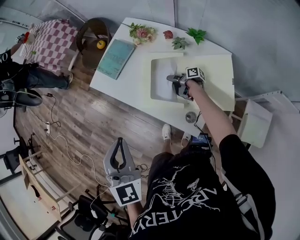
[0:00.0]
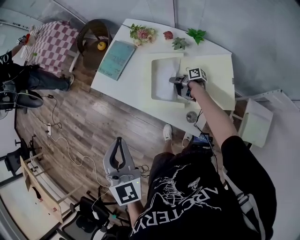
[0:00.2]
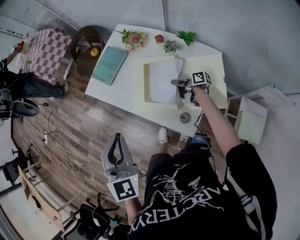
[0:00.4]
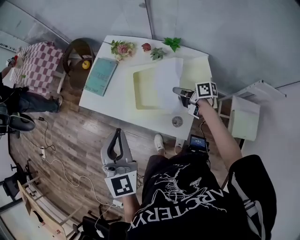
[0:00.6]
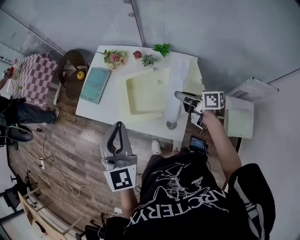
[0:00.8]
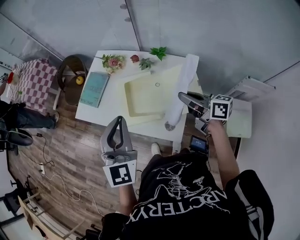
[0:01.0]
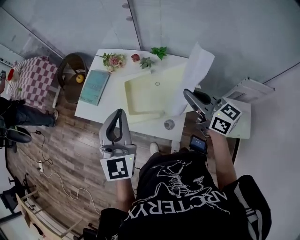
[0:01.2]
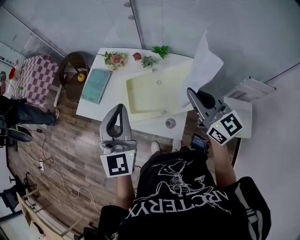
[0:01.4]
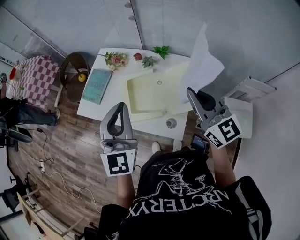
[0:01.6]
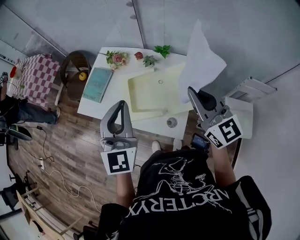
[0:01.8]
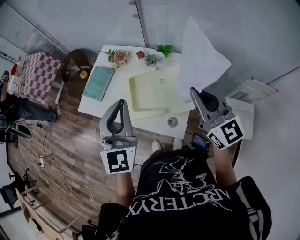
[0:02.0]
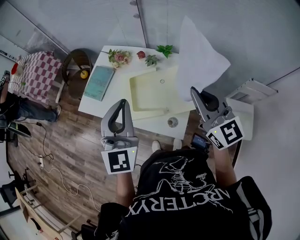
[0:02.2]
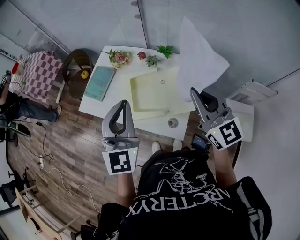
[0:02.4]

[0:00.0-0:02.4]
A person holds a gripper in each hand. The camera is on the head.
0:00.0 to 0:01.2: The left gripper moves some 15 cm, and swivels roughly 30 degrees; the right gripper heads upward, covering about 40 cm, and twists about 70 degrees counterclockwise, seen from behind.
0:01.2 to 0:02.4: The right gripper shifts roughly 5 cm upward, and changes its angle by approximately 30 degrees.

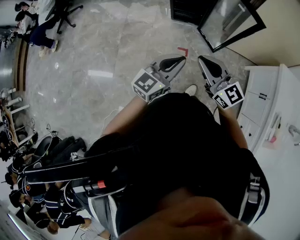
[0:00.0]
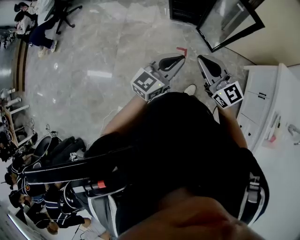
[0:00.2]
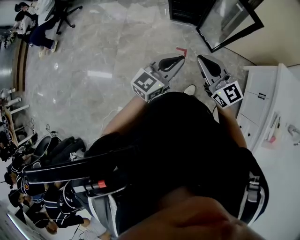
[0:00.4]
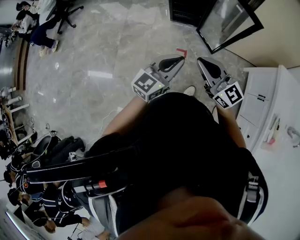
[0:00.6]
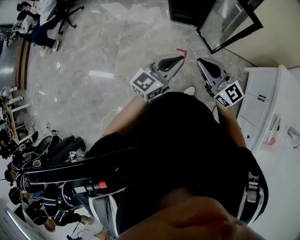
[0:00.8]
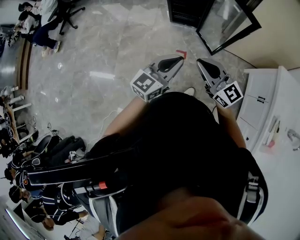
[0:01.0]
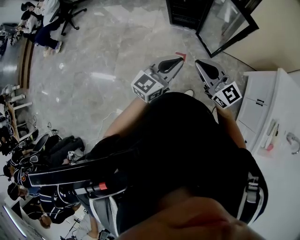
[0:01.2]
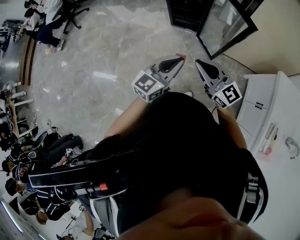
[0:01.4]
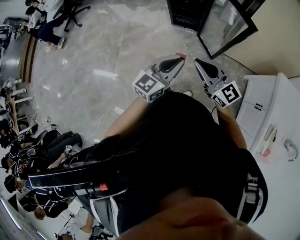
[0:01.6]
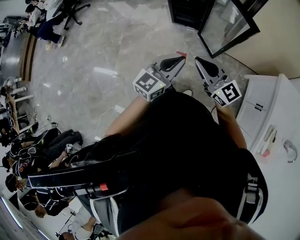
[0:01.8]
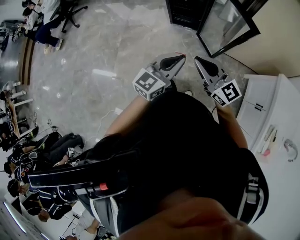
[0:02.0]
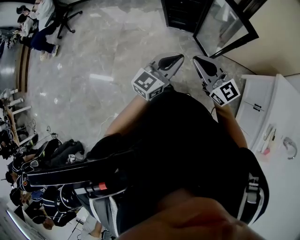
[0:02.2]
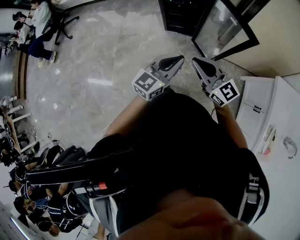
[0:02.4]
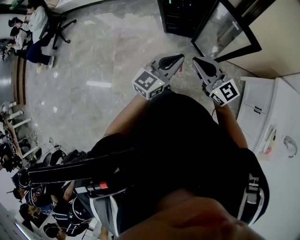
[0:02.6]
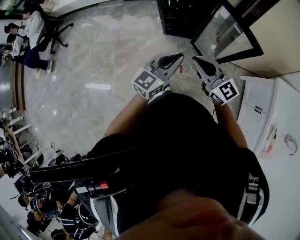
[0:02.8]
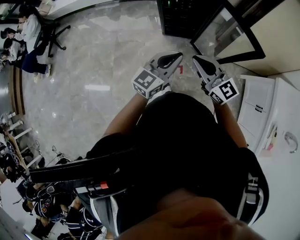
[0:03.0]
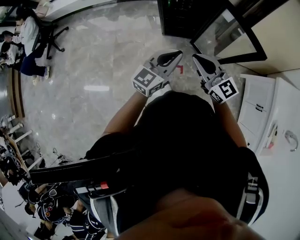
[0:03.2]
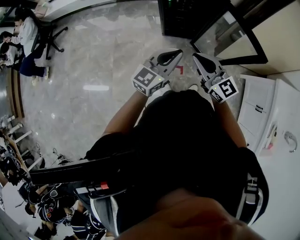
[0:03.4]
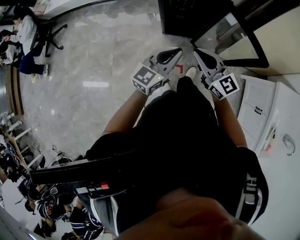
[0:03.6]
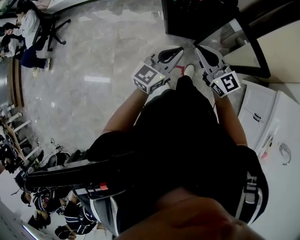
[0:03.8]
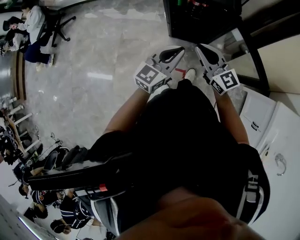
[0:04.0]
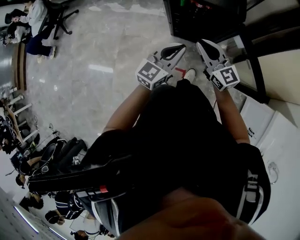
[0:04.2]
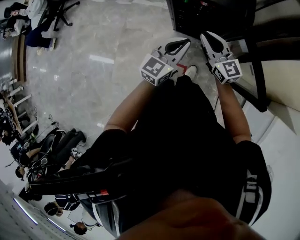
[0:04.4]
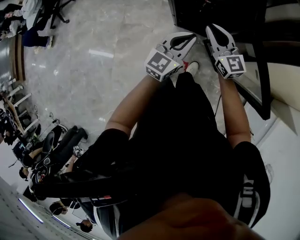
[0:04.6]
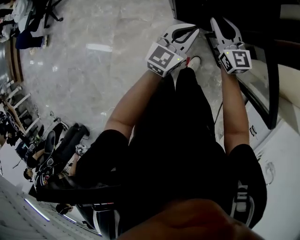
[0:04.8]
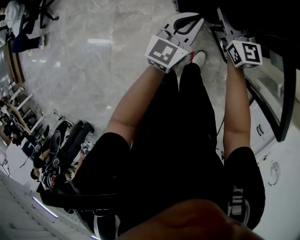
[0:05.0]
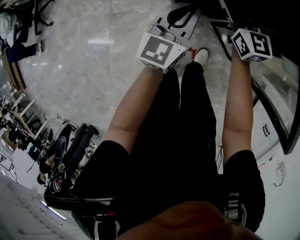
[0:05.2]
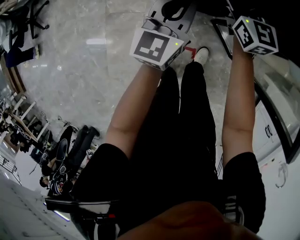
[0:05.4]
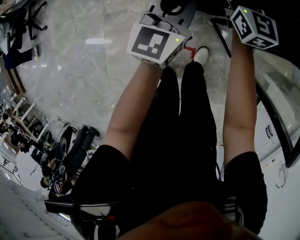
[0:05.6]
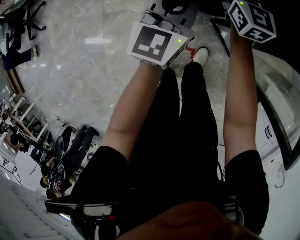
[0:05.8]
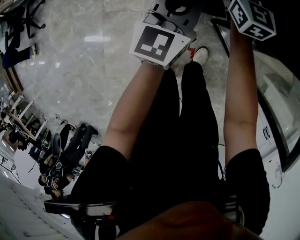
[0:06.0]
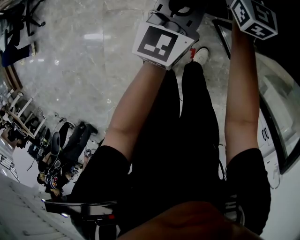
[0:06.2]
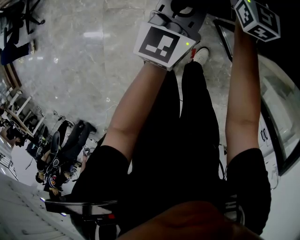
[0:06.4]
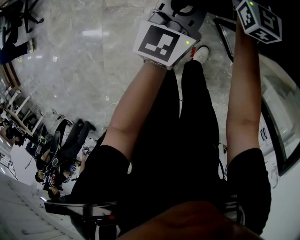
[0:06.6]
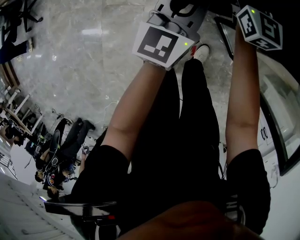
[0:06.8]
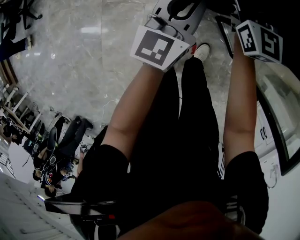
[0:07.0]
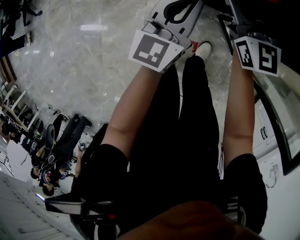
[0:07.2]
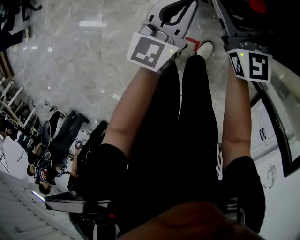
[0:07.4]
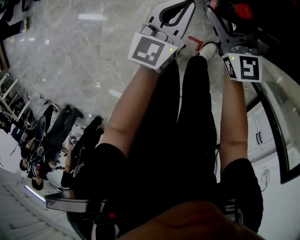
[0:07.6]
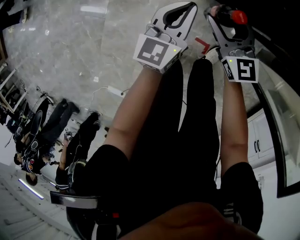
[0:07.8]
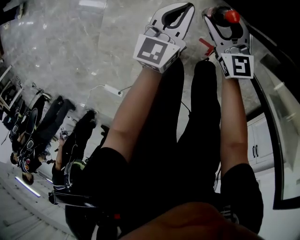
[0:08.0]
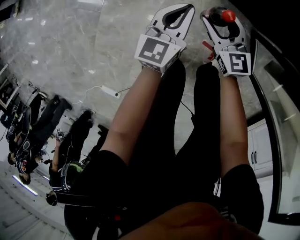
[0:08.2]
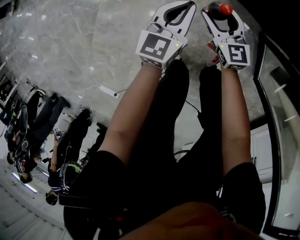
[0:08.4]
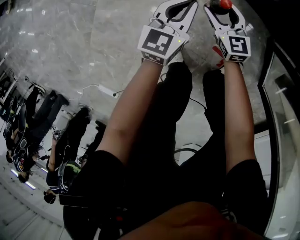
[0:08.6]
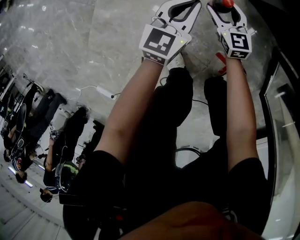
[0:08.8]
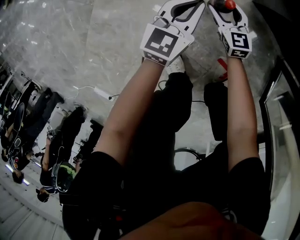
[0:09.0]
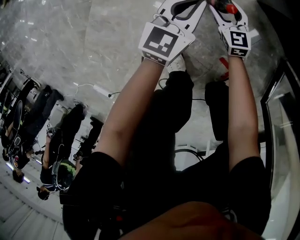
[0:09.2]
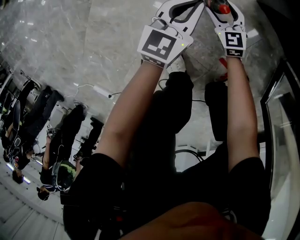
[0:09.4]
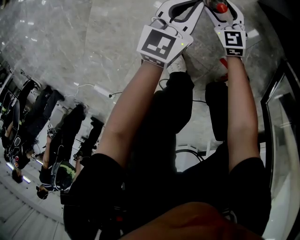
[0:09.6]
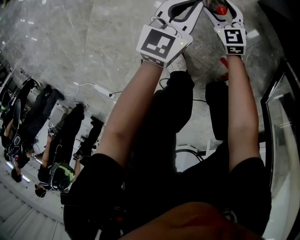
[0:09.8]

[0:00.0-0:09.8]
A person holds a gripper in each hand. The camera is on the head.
0:00.0 to 0:01.4: The two grippers go approximately 10 cm to the right.
0:01.4 to 0:02.8: Both grippers move forward, some 20 cm.
0:02.8 to 0:04.2: Both grippers move forward, about 25 cm.
0:04.2 to 0:05.6: The left gripper heads downward and forward, covering some 25 cm, while the right gripper goes approximately 30 cm forward and downward, changes its angle by approximately 30 degrees, and opens up.
0:07.0 to 0:08.4: Both grippers travel together downward and to the left, approximately 50 cm. The left gripper changes its angle by roughly 30 degrees. The right gripper turns by some 30 degrees.
0:08.4 to 0:09.8: The right gripper travels downward by some 25 cm; the left gripper travels downward by roughly 15 cm.

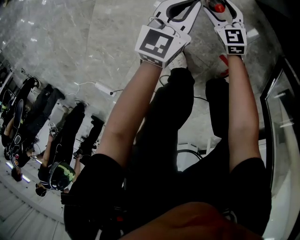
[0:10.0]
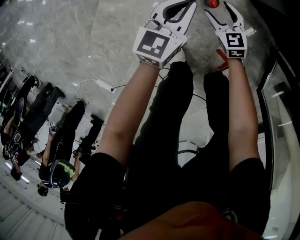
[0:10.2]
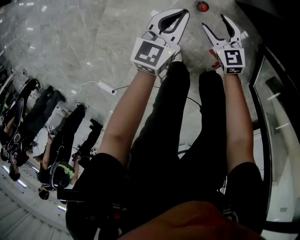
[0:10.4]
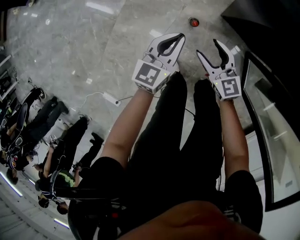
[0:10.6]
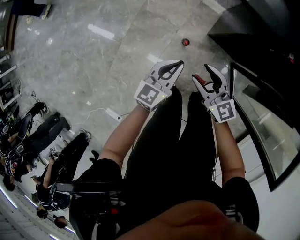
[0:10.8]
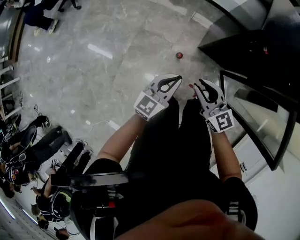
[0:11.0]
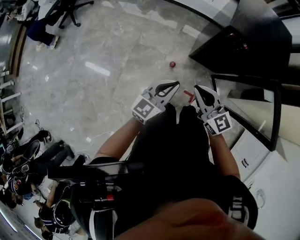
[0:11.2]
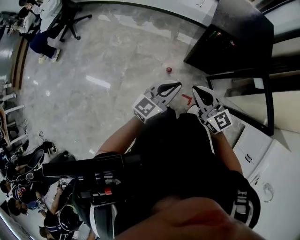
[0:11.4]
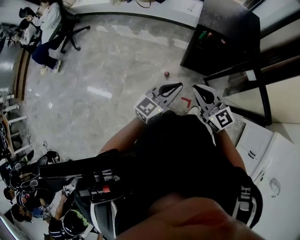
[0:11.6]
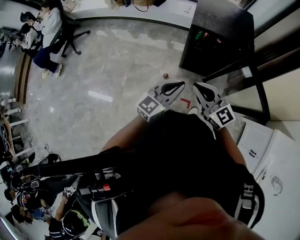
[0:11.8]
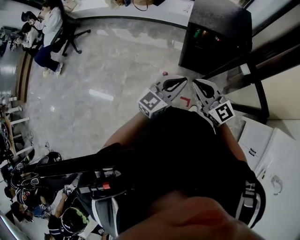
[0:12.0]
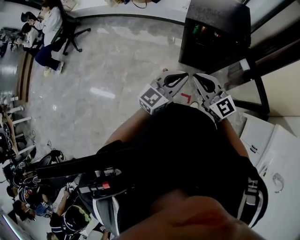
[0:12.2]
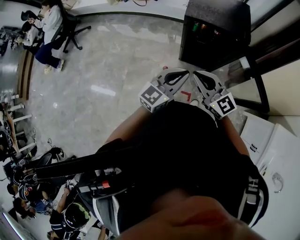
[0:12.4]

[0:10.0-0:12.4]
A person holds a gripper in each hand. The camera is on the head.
0:10.0 to 0:11.2: The grippers both shift upward by roughly 70 cm. The left gripper rotates roughly 30 degrees. Meanwhile the right gripper swivels some 30 degrees, and closes.
0:11.2 to 0:12.4: The grippers both shift upward and to the right by some 20 cm.

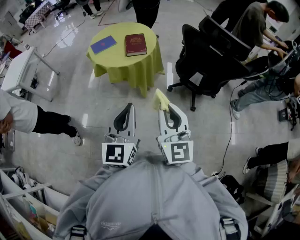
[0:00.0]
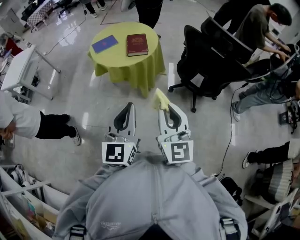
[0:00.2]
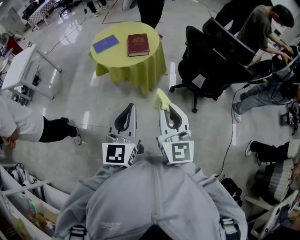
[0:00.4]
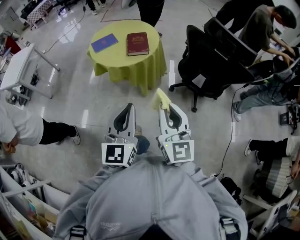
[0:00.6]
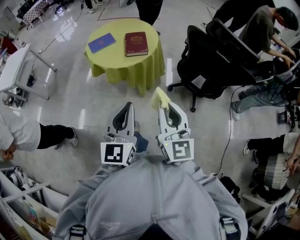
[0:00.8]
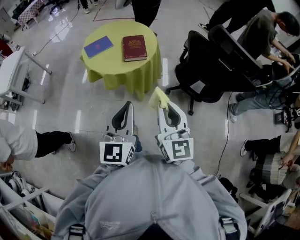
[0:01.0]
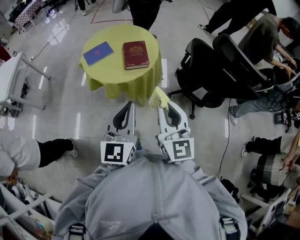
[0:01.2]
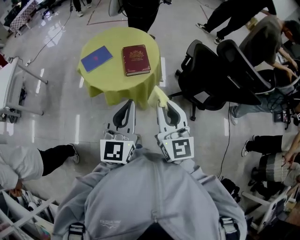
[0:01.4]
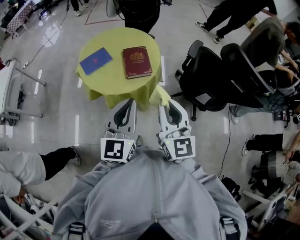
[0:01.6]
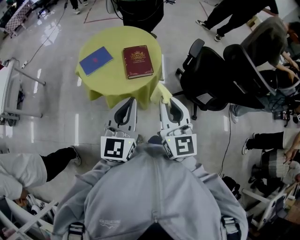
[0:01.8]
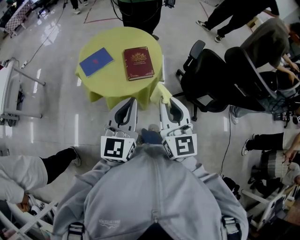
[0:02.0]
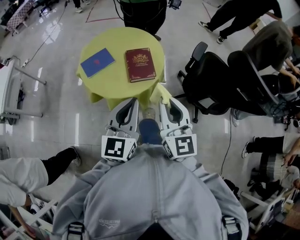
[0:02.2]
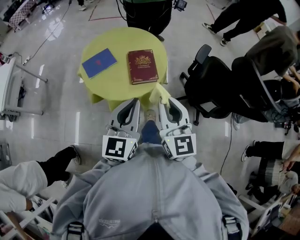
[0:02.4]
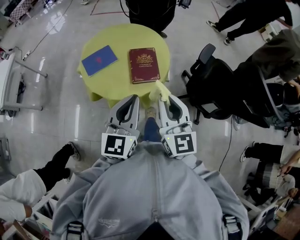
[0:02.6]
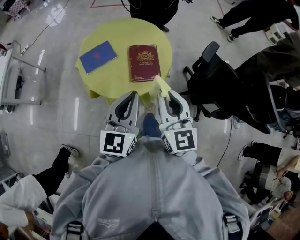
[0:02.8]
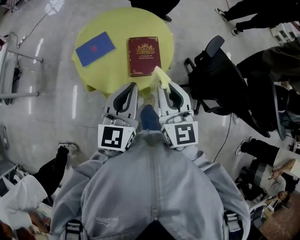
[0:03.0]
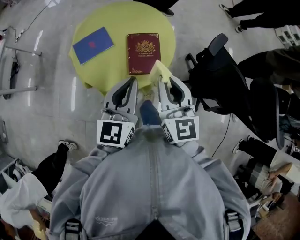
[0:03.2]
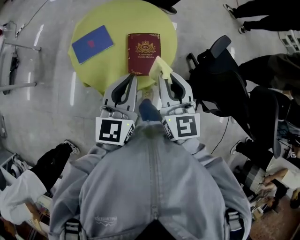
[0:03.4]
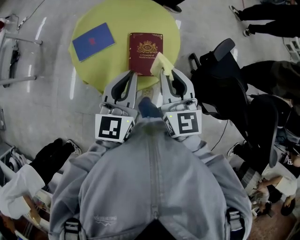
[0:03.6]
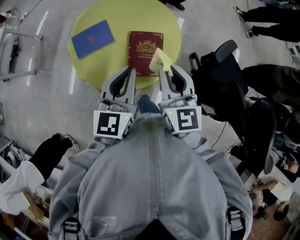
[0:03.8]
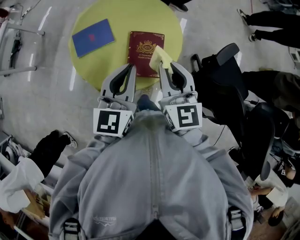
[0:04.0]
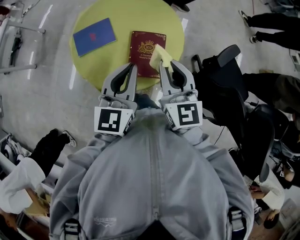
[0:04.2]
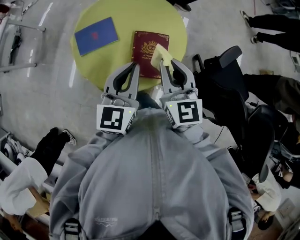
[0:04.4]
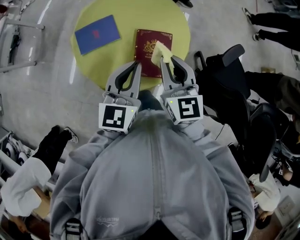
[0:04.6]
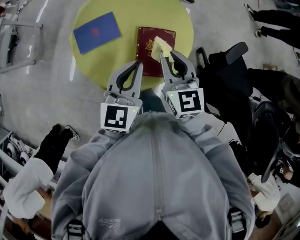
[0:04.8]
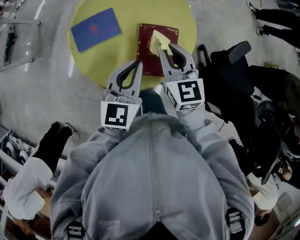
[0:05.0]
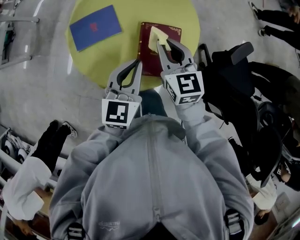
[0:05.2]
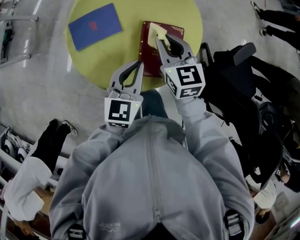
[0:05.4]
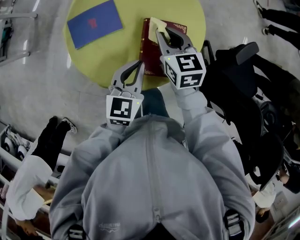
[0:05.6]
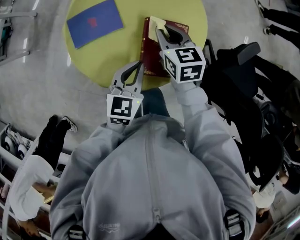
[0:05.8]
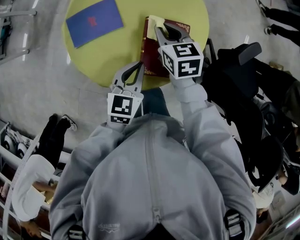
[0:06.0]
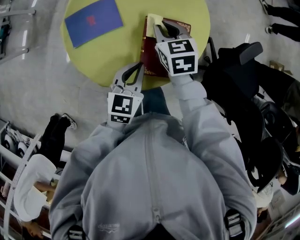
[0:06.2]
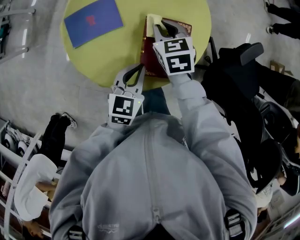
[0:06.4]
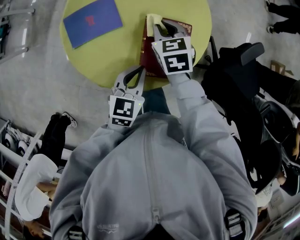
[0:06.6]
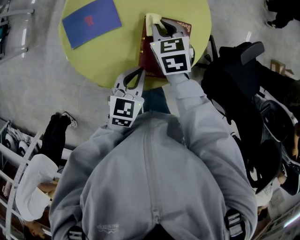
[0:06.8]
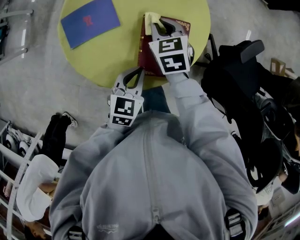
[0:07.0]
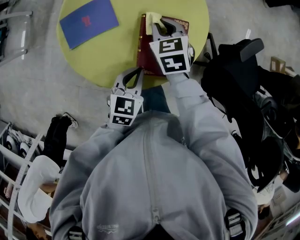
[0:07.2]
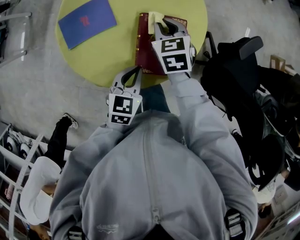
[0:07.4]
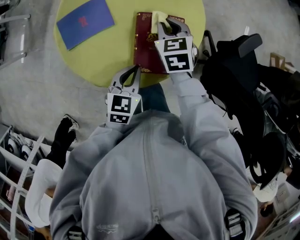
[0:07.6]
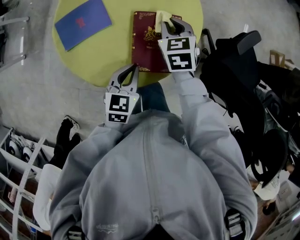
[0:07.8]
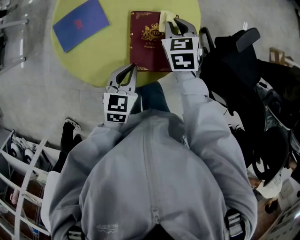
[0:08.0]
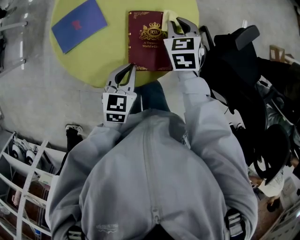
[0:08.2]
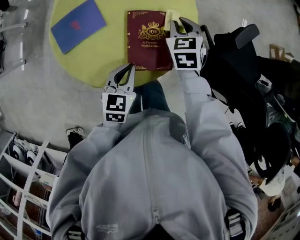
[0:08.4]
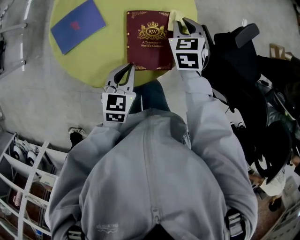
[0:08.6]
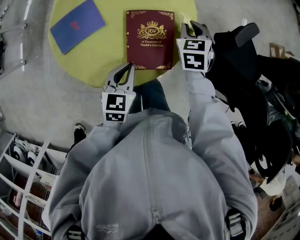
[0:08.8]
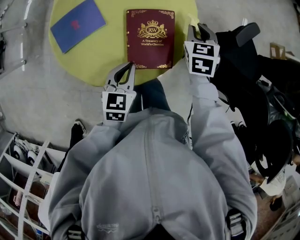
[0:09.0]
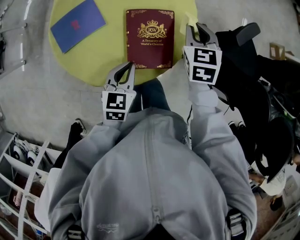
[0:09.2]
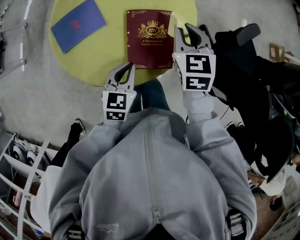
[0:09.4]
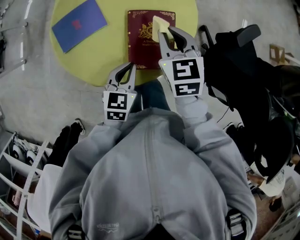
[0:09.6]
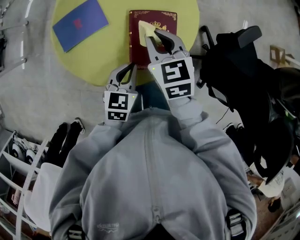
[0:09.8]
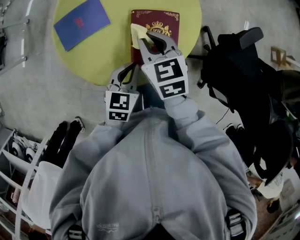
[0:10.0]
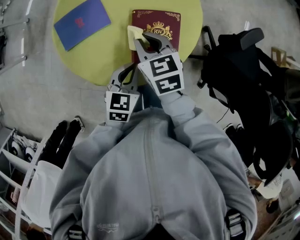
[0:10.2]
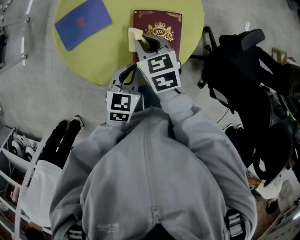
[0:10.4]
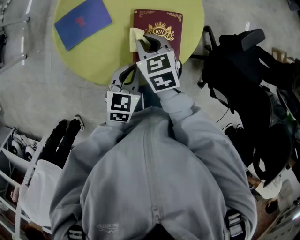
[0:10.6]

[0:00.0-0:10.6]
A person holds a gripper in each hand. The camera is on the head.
0:00.0 to 0:01.6: Both grippers travel together forward, approximately 30 cm.
0:01.6 to 0:03.0: The grippers both shift forward by approximately 20 cm.
0:03.0 to 0:04.6: The right gripper goes some 20 cm forward and downward. The left gripper shifts some 15 cm forward.
0:04.6 to 0:06.0: The right gripper travels downward and forward by about 20 cm, and changes its angle by some 20 degrees. Meanwhile the left gripper travels downward by approximately 20 cm.
0:06.0 to 0:07.6: The right gripper ends up about 5 cm from where it was.
0:07.6 to 0:09.0: The right gripper shifts about 15 cm to the right.
0:09.0 to 0:10.6: The right gripper goes roughly 20 cm to the left, and changes its angle by approximately 30 degrees.
